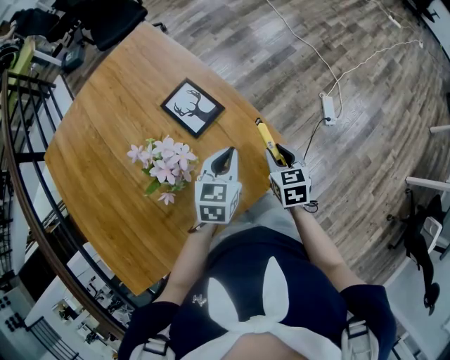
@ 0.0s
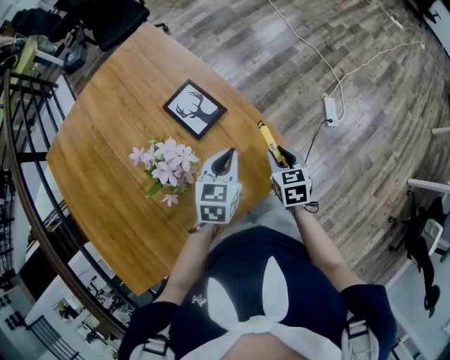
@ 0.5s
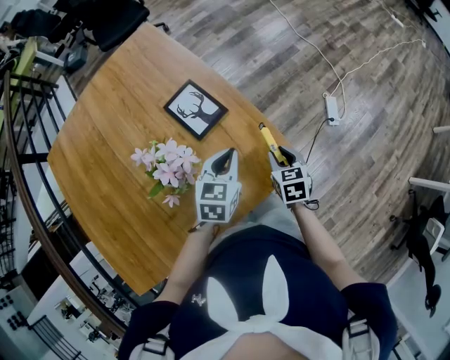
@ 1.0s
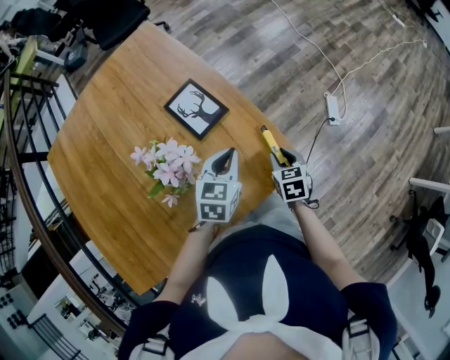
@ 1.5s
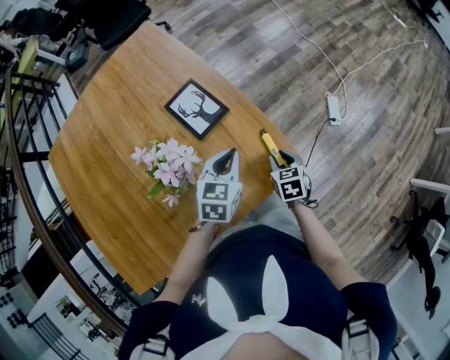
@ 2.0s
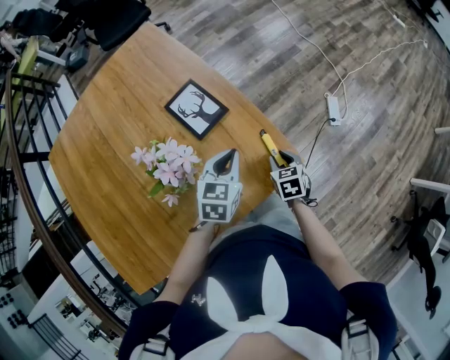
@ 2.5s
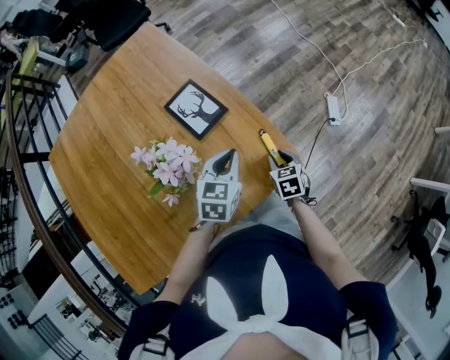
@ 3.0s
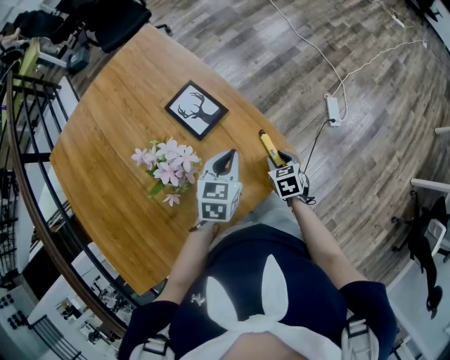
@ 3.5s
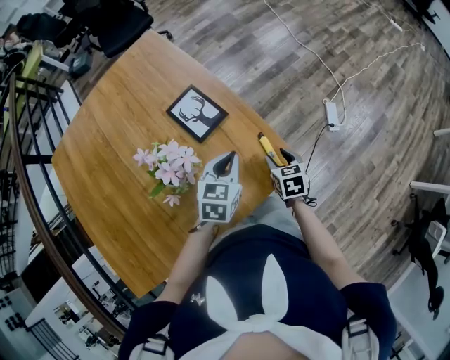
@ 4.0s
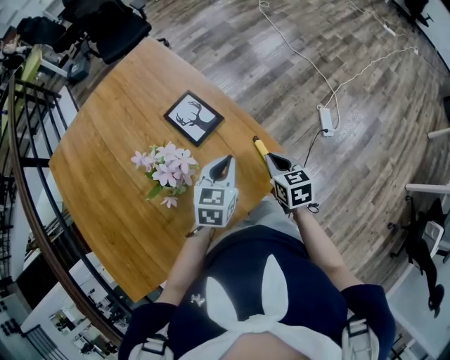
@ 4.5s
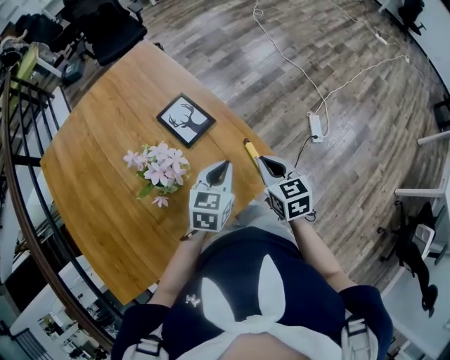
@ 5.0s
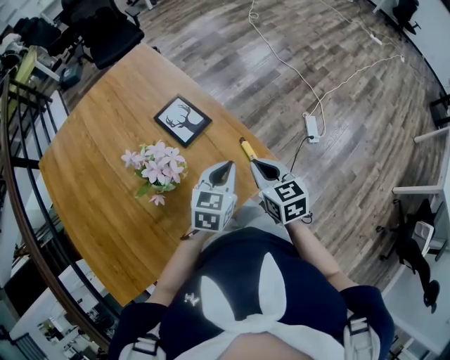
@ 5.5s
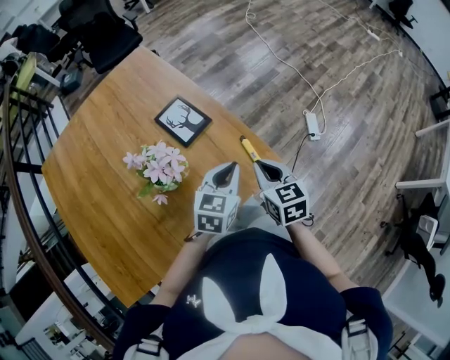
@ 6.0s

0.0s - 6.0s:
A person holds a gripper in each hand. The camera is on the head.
0.0s - 2.0s: The right gripper goes roughly 10 cm downward.
2.0s - 4.0s: The right gripper opens up.
4.0s - 6.0s: The right gripper travels upward by about 15 cm, and closes, while the left gripper shifts about 5 cm backward.

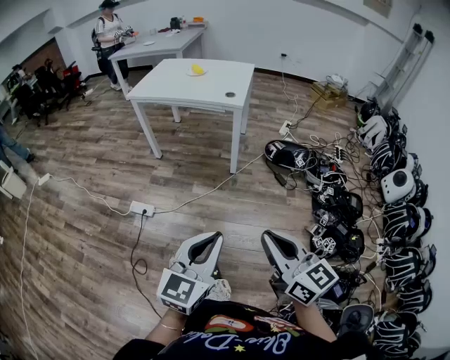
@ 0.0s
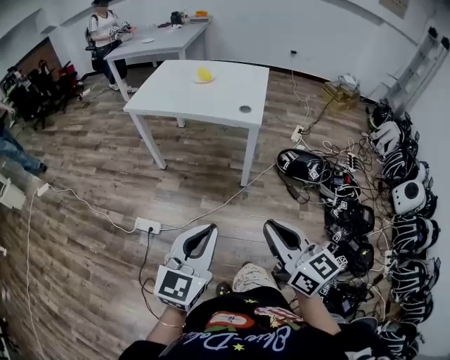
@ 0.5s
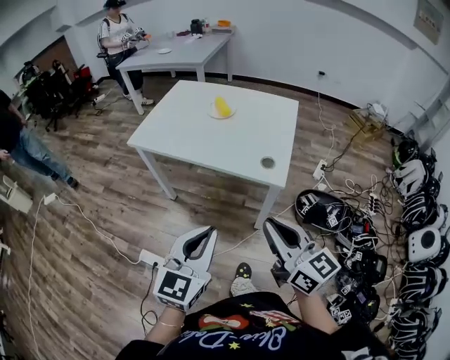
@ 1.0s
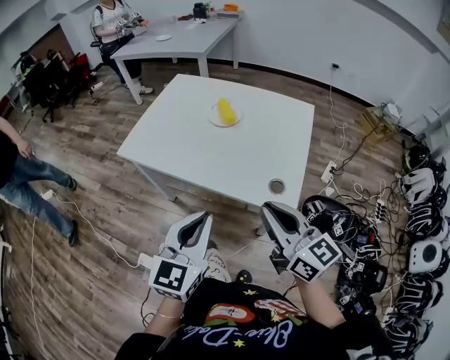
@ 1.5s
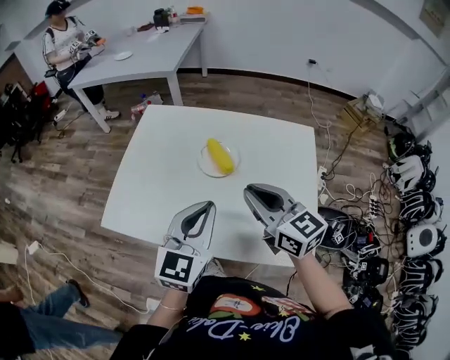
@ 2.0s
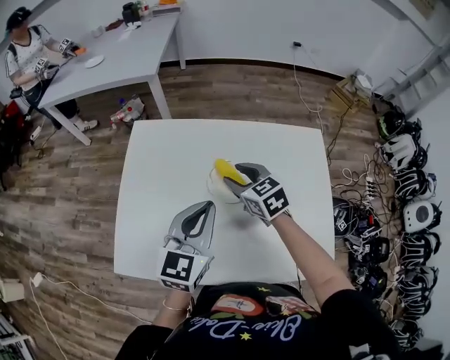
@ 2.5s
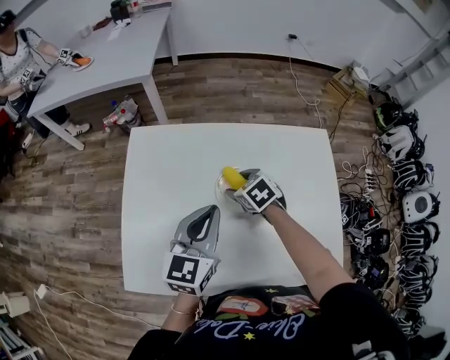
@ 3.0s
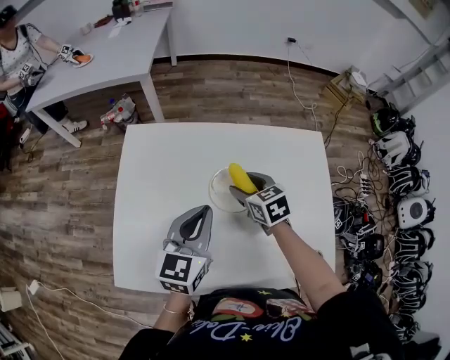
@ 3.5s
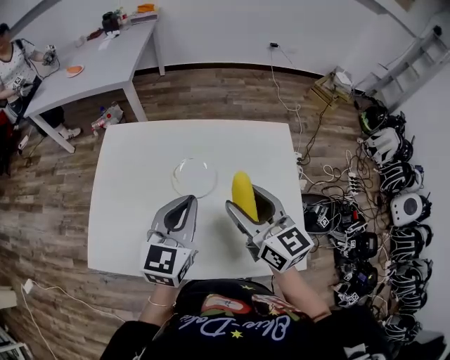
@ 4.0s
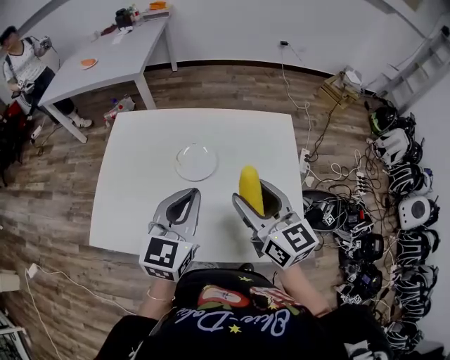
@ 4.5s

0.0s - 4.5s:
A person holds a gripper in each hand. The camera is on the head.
0.0s - 2.0s: The two grippers travel together, forward, approximately 1 m.
2.0s - 4.5s: The left gripper travels forward and back again, some 20 cm each way. Meanwhile the right gripper shifts some 5 cm to the right, moves roughly 25 cm forward and comes back, and opens up.

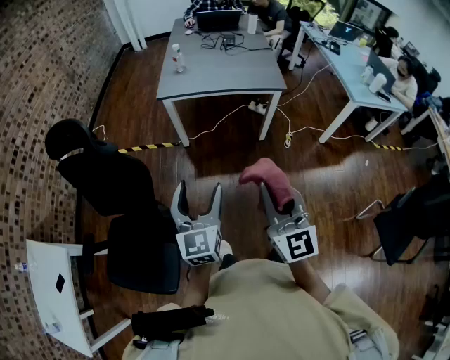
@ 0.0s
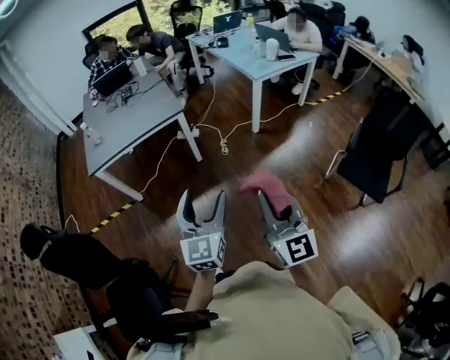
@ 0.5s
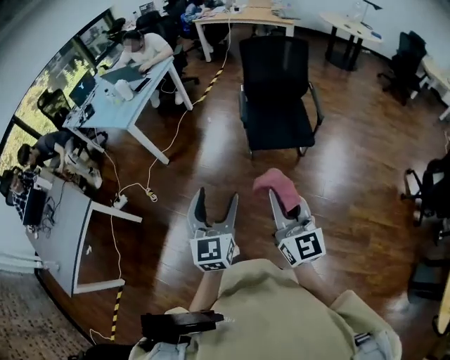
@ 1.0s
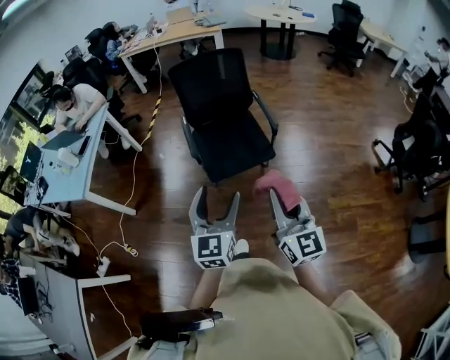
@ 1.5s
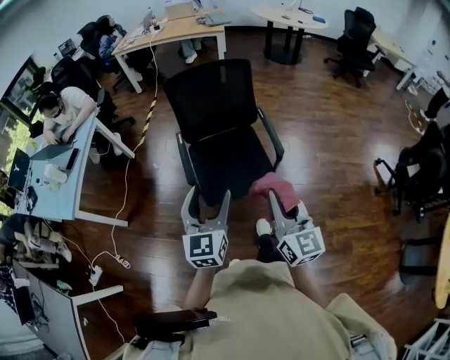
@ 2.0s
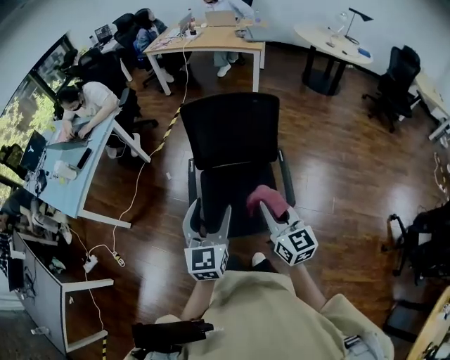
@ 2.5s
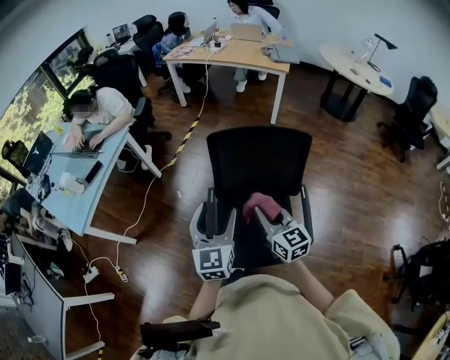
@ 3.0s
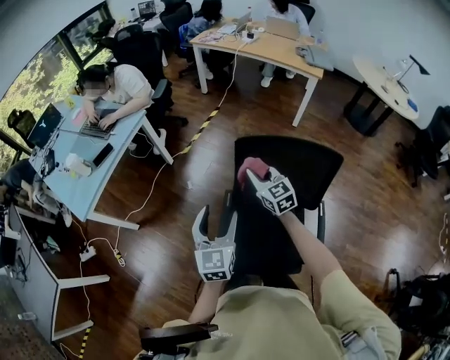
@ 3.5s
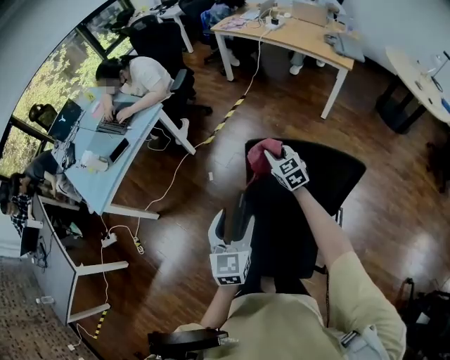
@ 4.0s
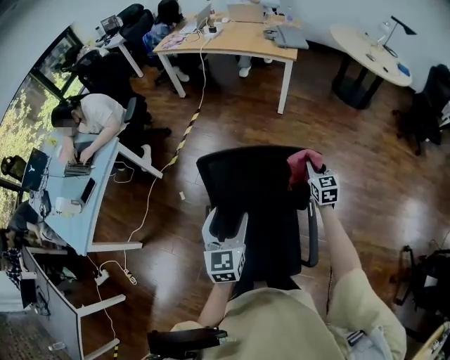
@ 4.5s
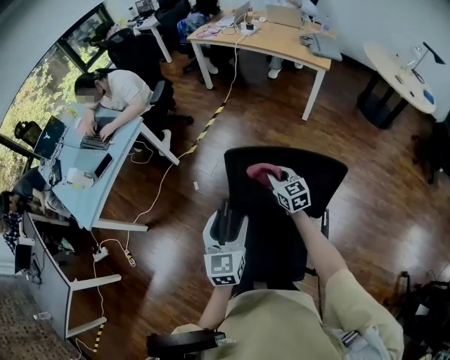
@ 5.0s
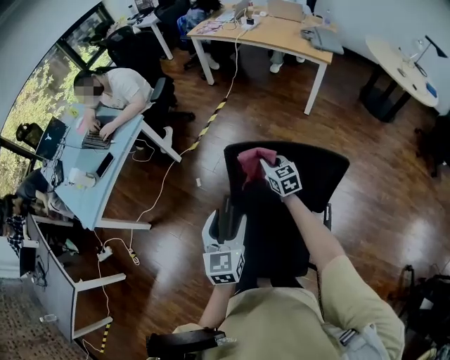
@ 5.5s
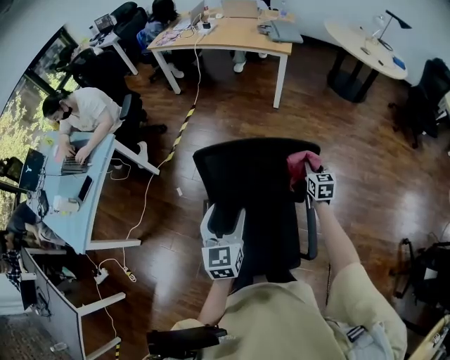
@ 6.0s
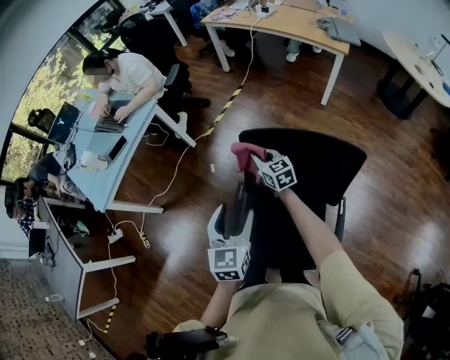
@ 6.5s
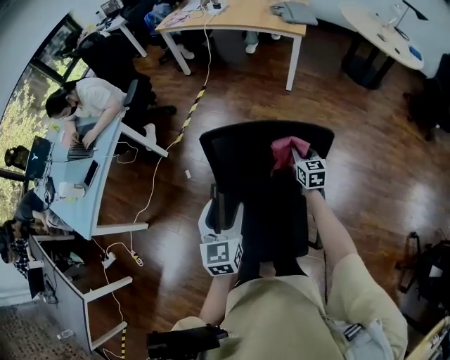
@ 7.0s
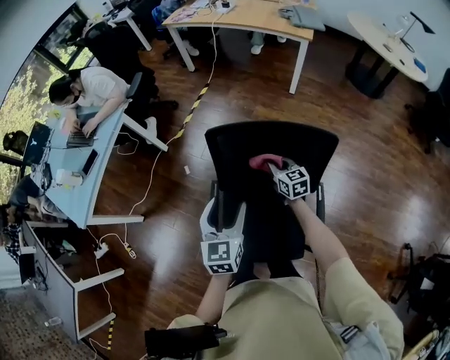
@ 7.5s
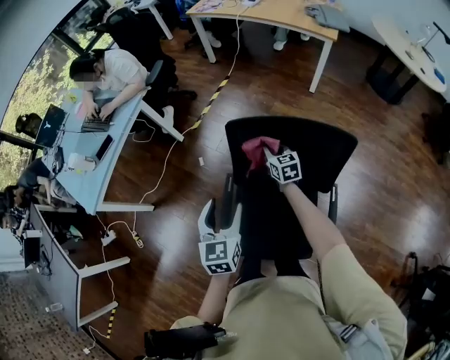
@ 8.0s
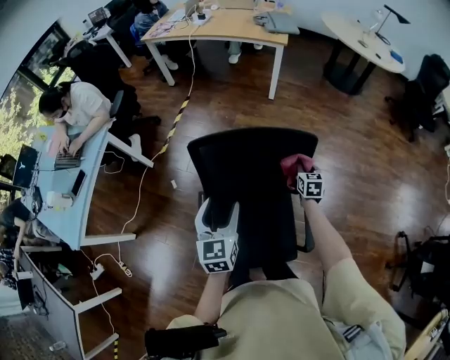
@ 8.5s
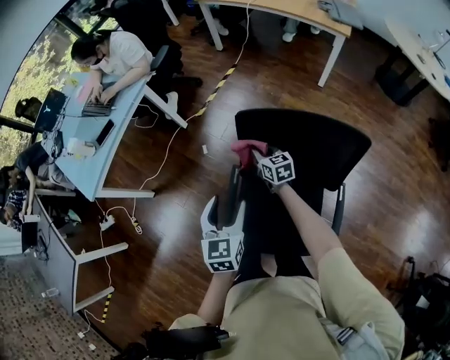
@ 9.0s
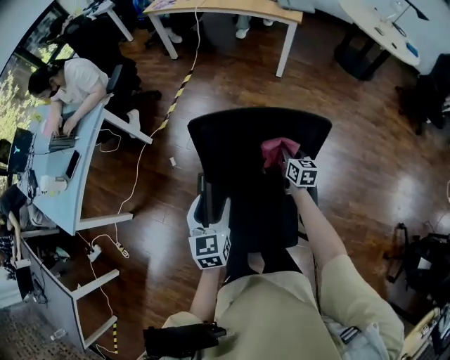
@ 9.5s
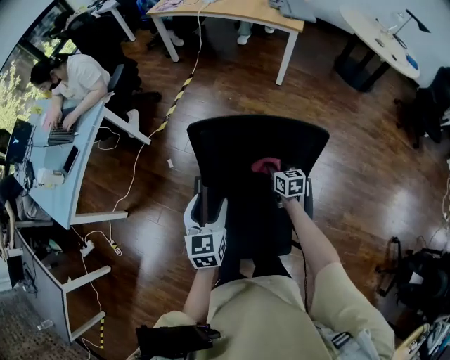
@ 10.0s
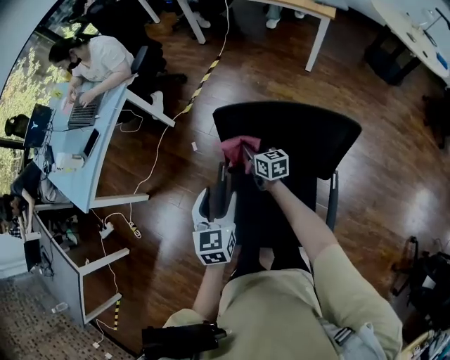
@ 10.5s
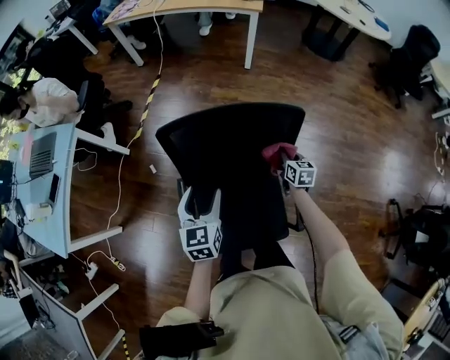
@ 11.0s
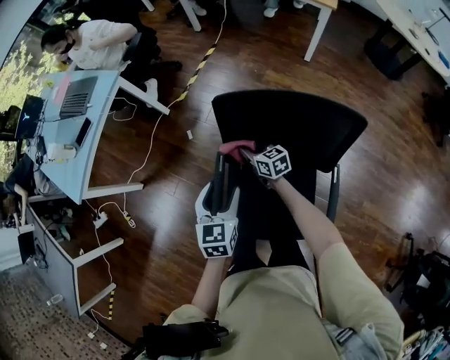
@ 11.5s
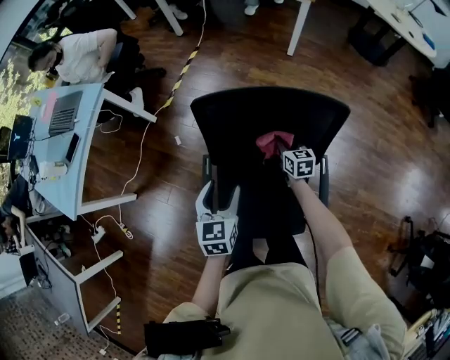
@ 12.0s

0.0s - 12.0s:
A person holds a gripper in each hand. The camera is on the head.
0.0s - 2.0s: The pair of grippers is taken some 1 m. The right gripper rotates roughly 90 degrees. Meanwhile the left gripper turns by roughly 90 degrees.
2.0s - 4.0s: The right gripper changes place by some 70 cm, and swivels some 50 degrees; the left gripper shifts by approximately 40 cm, and rotates approximately 30 degrees.
4.0s - 6.0s: The left gripper ends up roughly 10 cm from where it was, while the right gripper changes place by about 35 cm, and swivels roughly 40 degrees.
6.0s - 8.0s: The right gripper ends up about 30 cm from where it was, and changes its angle by some 20 degrees, while the left gripper shifts by approximately 10 cm.
8.0s - 10.0s: The left gripper shifts by some 10 cm.
10.0s - 12.0s: The left gripper moves downward, about 5 cm.

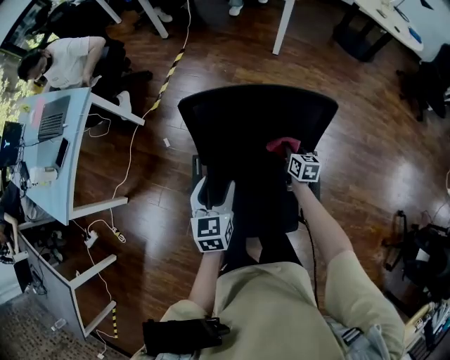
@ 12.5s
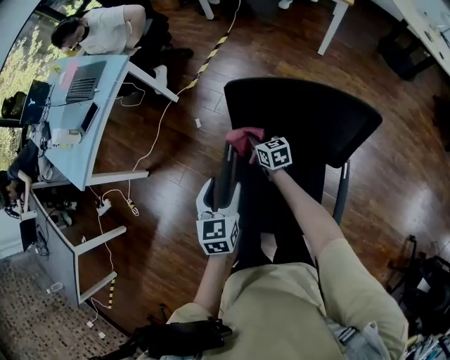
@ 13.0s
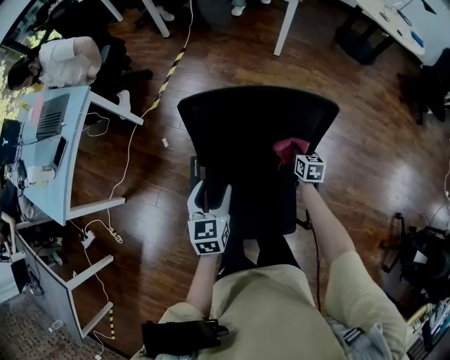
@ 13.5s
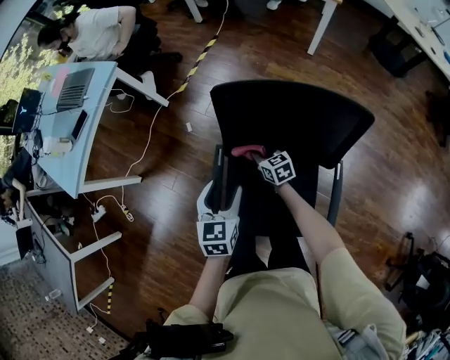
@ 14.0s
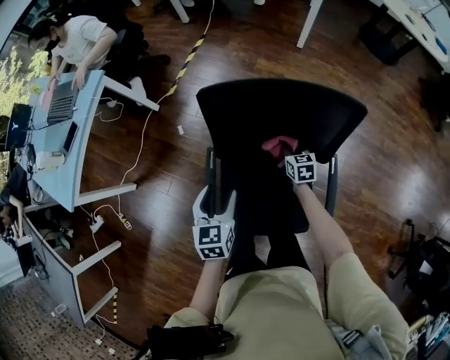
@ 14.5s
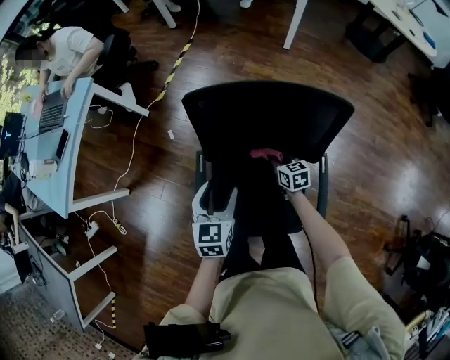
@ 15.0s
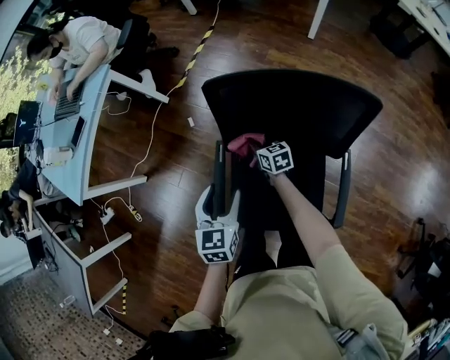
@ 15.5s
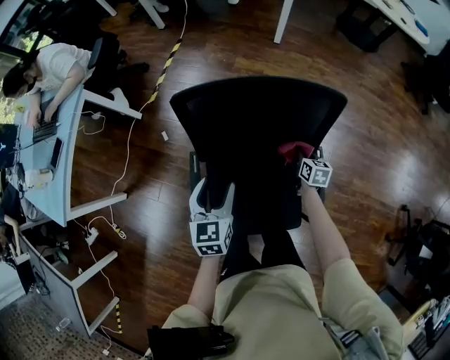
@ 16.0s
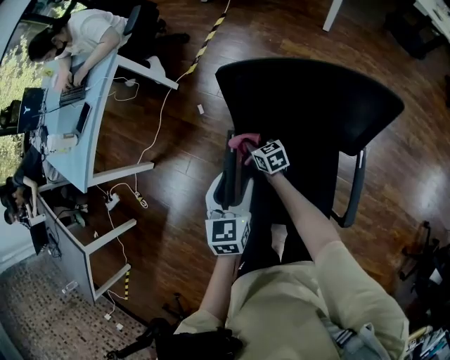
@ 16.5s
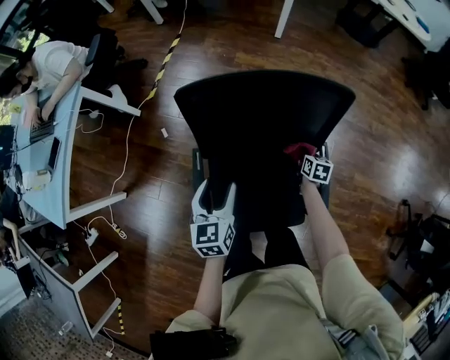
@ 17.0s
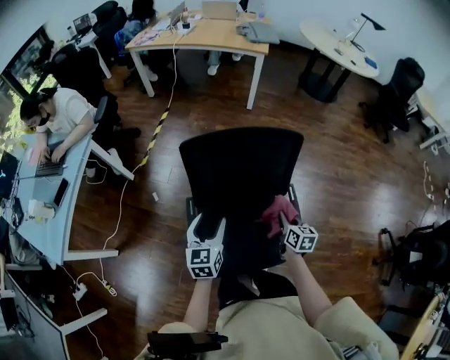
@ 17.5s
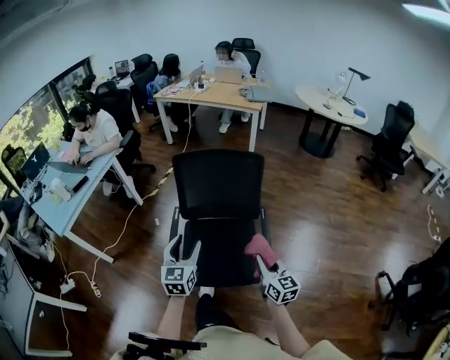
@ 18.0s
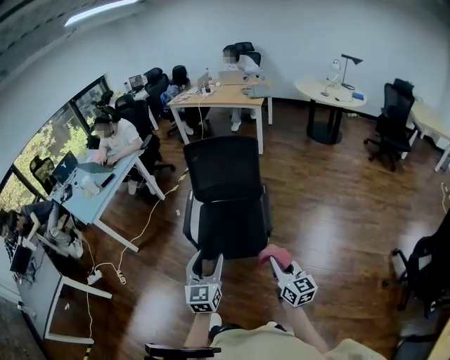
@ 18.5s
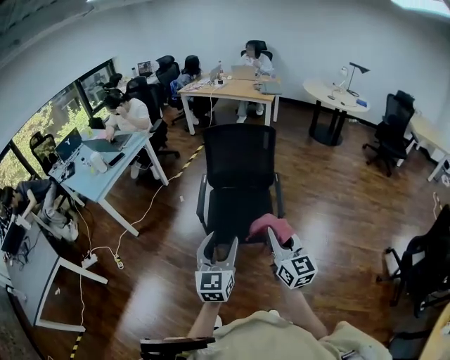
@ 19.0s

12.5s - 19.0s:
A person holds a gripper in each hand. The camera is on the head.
12.5s - 14.5s: The right gripper swings left and right, some 30 cm each way, with 3 reversals. The left gripper swings left and right, some 10 cm each way, with 2 reversals.
14.5s - 17.0s: The right gripper ends up approximately 15 cm from where it was, and rotates roughly 30 degrees.
17.0s - 19.0s: The two grippers travel together, backward, about 60 cm. The right gripper is displaced upward by some 50 cm, and tips its fingers upward by about 60 degrees. The left gripper is displaced upward by about 25 cm, and turns by about 30 degrees.
